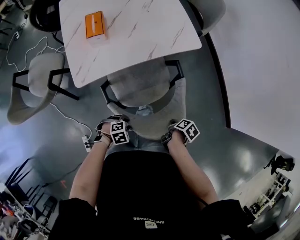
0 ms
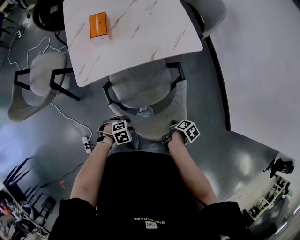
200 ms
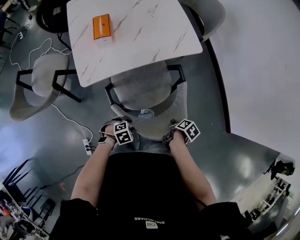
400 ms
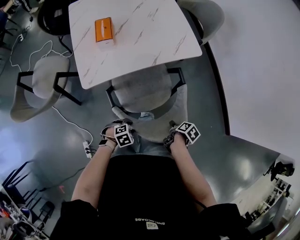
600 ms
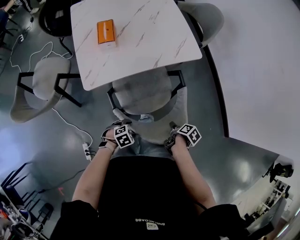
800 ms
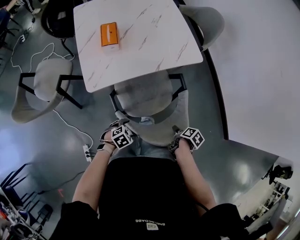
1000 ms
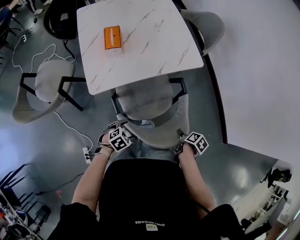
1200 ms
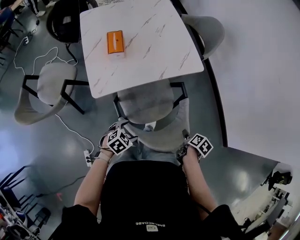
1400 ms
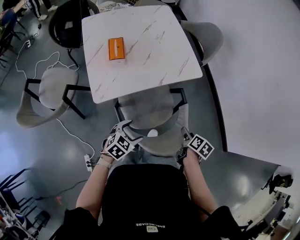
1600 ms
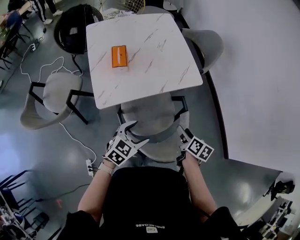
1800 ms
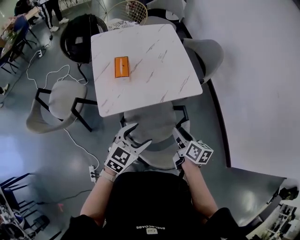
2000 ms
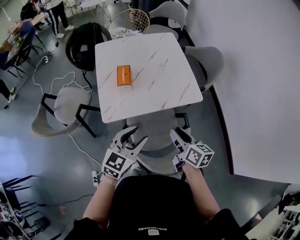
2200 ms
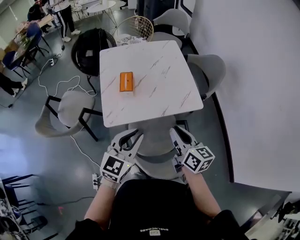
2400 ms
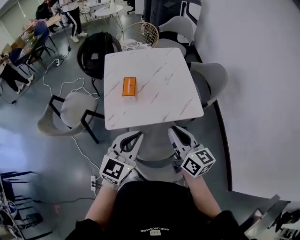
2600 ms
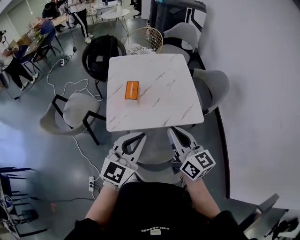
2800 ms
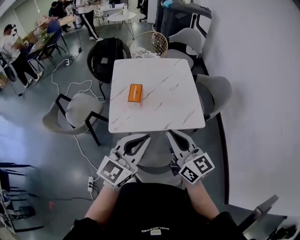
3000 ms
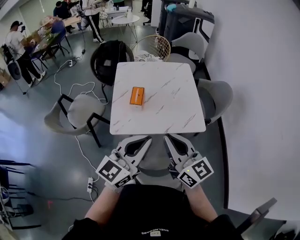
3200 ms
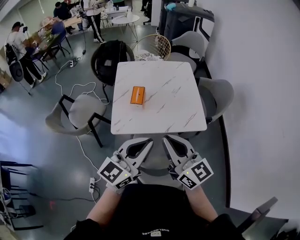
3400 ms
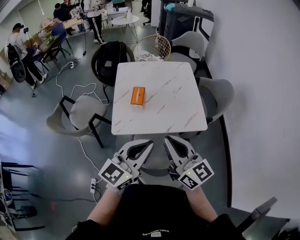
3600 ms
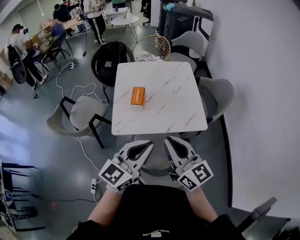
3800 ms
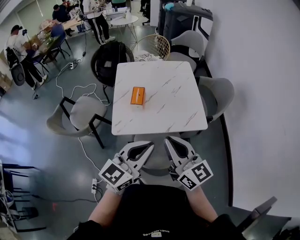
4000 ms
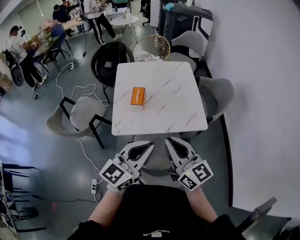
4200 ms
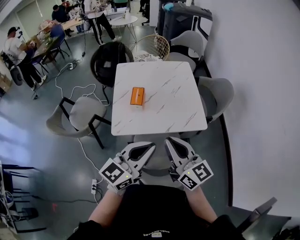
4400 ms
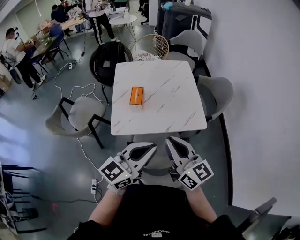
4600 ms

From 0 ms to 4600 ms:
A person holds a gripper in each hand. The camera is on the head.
From 0 ms to 1600 ms: The two grippers go roughly 15 cm upward. The left gripper swivels about 40 degrees, and opens, while the right gripper rotates approximately 30 degrees, and opens its fingers.
From 1600 ms to 3000 ms: The two grippers go approximately 35 cm upward. The left gripper tips its fingers upward by about 50 degrees, and closes, while the right gripper angles its fingers upward, by about 60 degrees, and closes up.
From 3000 ms to 4600 ms: The grippers make only small movements.

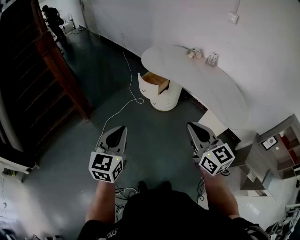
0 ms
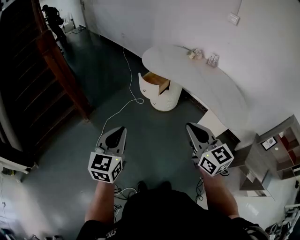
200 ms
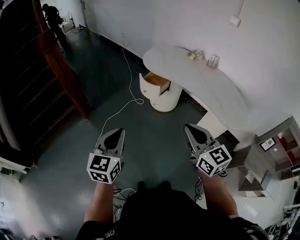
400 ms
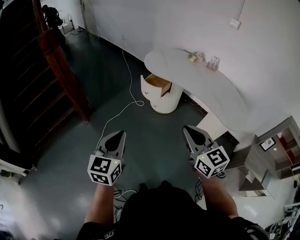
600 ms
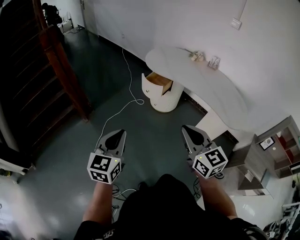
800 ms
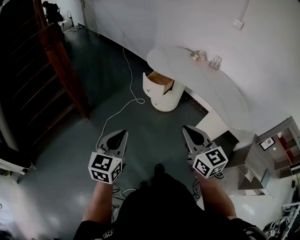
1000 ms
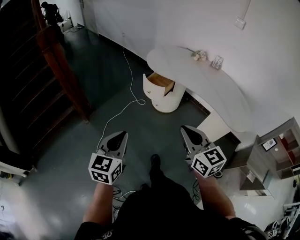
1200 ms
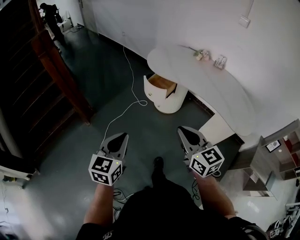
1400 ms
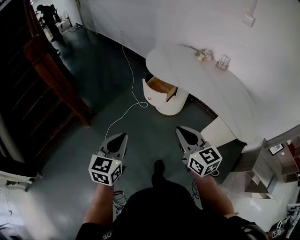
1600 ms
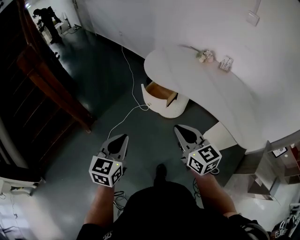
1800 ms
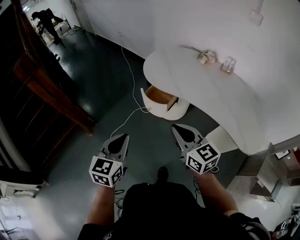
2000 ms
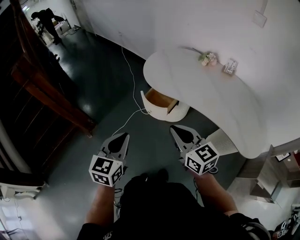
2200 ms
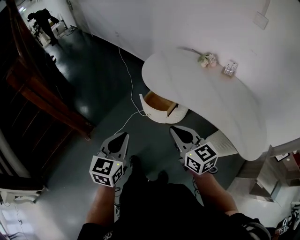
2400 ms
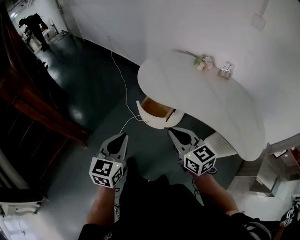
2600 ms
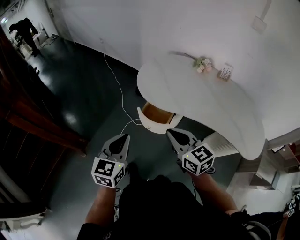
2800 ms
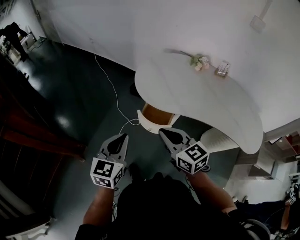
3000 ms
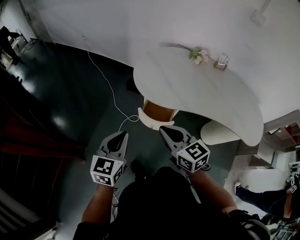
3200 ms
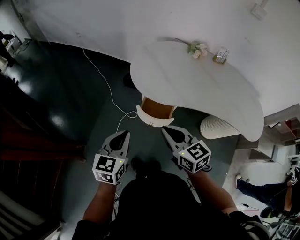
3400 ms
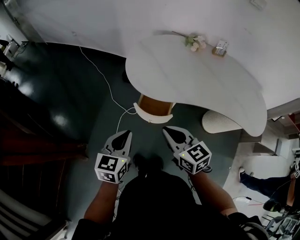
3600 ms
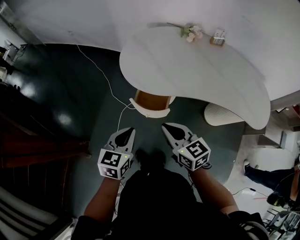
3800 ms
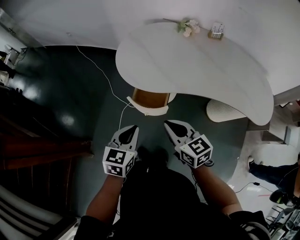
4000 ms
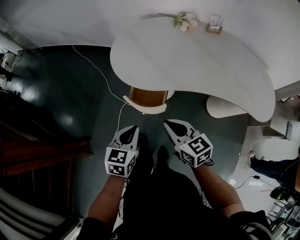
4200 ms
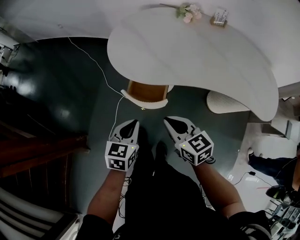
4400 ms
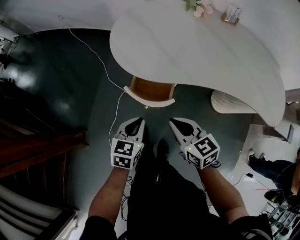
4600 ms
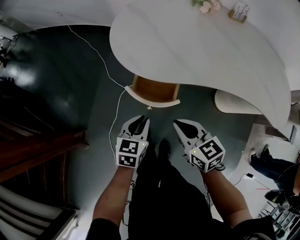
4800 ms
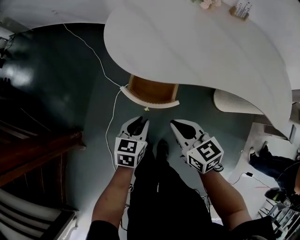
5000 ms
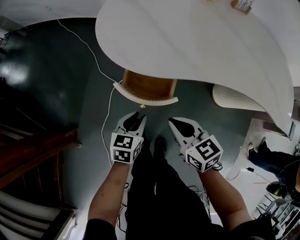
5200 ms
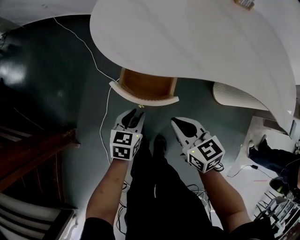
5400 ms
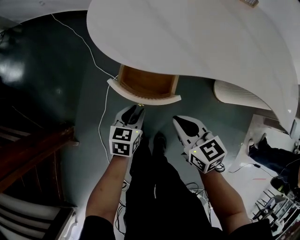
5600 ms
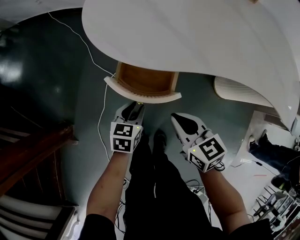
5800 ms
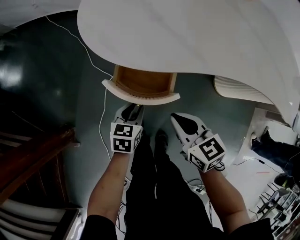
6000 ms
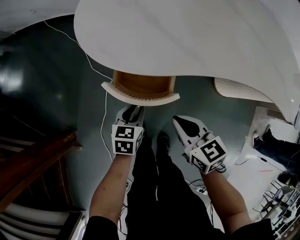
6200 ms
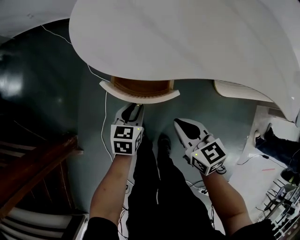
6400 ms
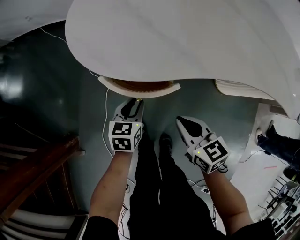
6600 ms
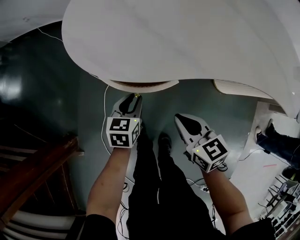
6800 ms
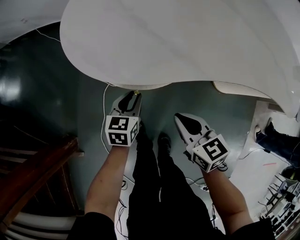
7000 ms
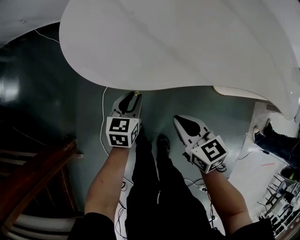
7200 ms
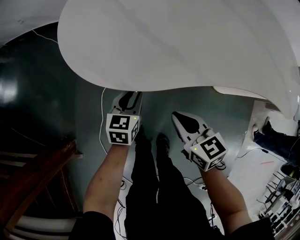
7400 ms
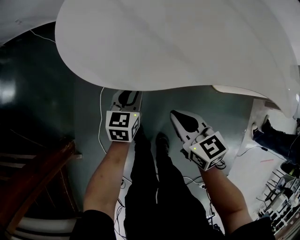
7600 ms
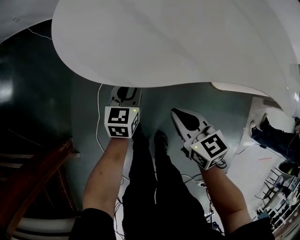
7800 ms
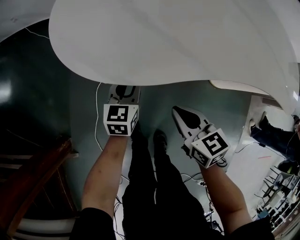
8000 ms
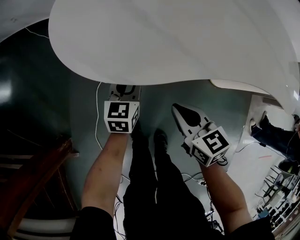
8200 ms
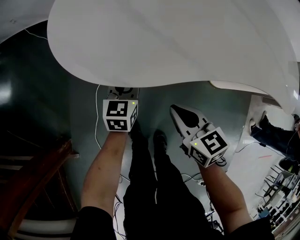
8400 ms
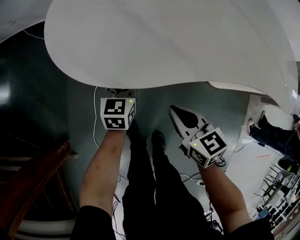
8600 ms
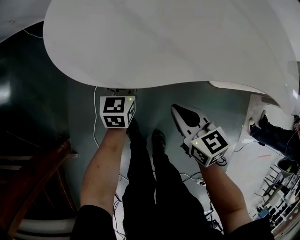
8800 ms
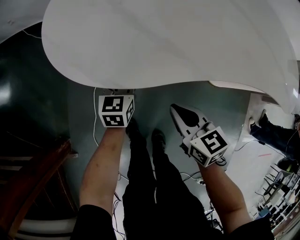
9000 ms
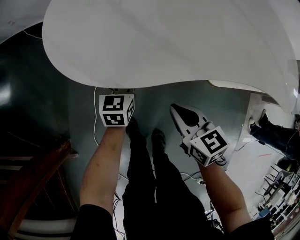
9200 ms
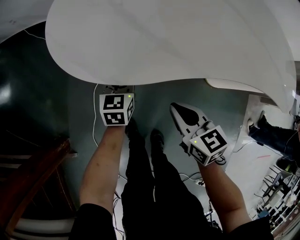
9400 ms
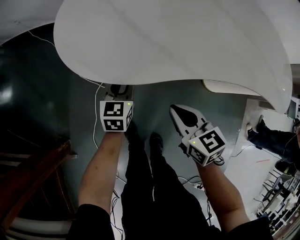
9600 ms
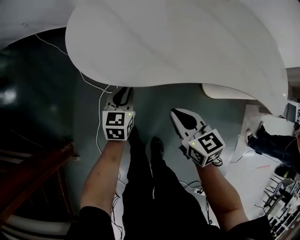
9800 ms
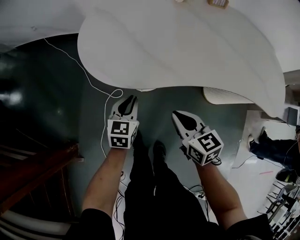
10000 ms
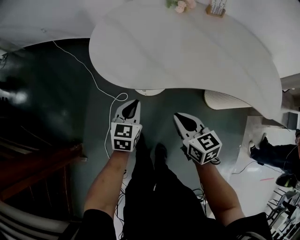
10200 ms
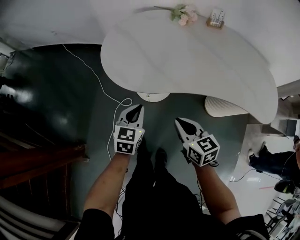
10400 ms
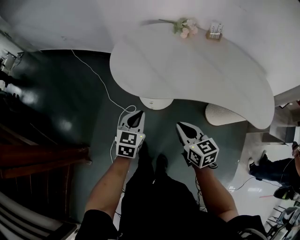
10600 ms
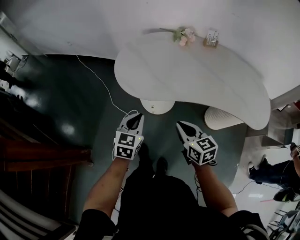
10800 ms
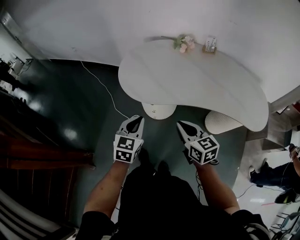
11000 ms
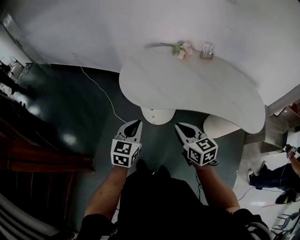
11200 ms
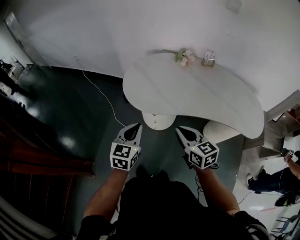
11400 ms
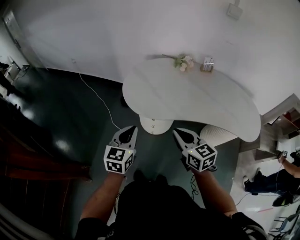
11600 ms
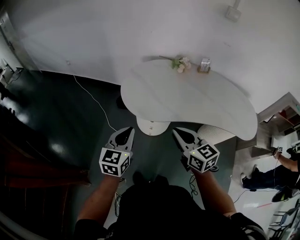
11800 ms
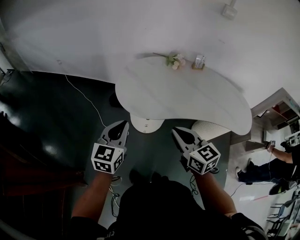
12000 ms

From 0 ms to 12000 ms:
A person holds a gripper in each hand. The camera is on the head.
From 0 ms to 1600 ms: The left gripper is displaced forward and downward by approximately 15 cm. The right gripper travels forward, to the left and downward by about 20 cm.
From 1600 ms to 3000 ms: Both grippers move forward, some 35 cm.
From 3000 ms to 4400 ms: Both grippers move downward and to the right, some 20 cm. The left gripper changes its angle by roughly 20 degrees.
From 4400 ms to 6000 ms: Both grippers travel together downward, roughly 25 cm. The left gripper opens.
From 6000 ms to 7600 ms: The right gripper shifts by about 5 cm. Meanwhile the left gripper goes about 10 cm forward.
From 7600 ms to 9000 ms: The left gripper travels forward by approximately 5 cm.
From 9000 ms to 10400 ms: The right gripper travels upward by some 15 cm. Meanwhile the left gripper is displaced upward and backward by approximately 25 cm, and closes.
From 10400 ms to 12000 ms: The left gripper goes approximately 25 cm upward and to the left. Meanwhile the right gripper moves upward, roughly 25 cm.

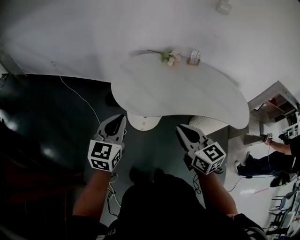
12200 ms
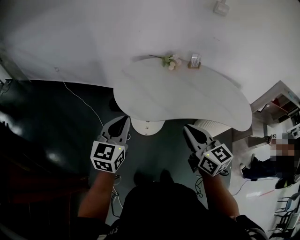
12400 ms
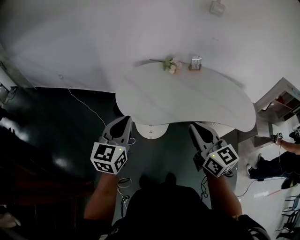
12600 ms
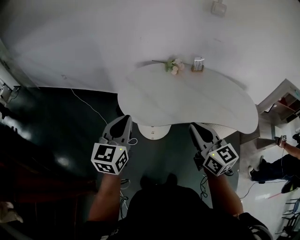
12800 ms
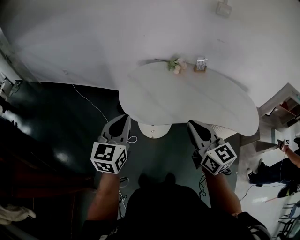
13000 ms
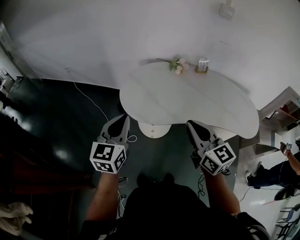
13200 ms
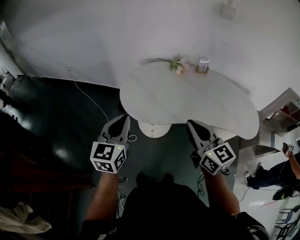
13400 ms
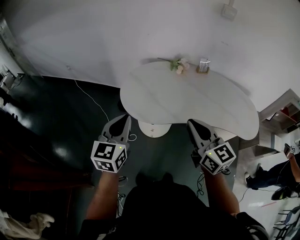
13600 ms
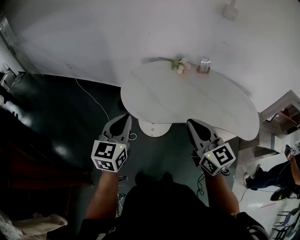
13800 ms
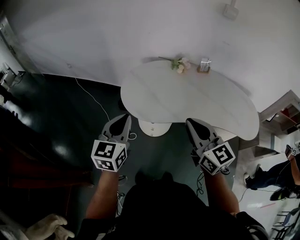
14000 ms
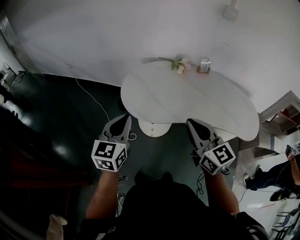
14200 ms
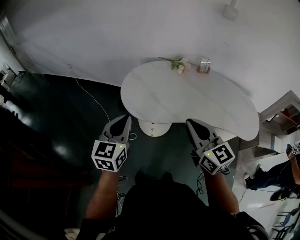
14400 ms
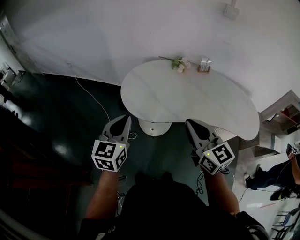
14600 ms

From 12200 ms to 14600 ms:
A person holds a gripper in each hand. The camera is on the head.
From 12200 ms to 13400 ms: The left gripper ends up roughly 5 cm from where it was; the right gripper shifts approximately 10 cm upward and to the right.
From 13400 ms to 14600 ms: The grippers make only small movements.

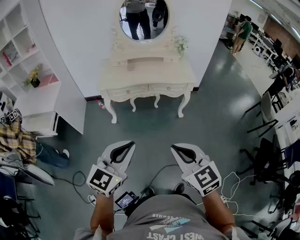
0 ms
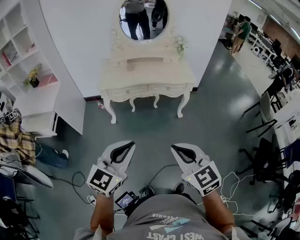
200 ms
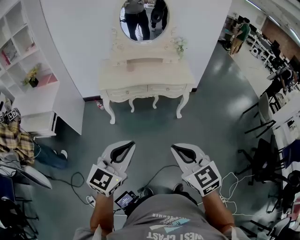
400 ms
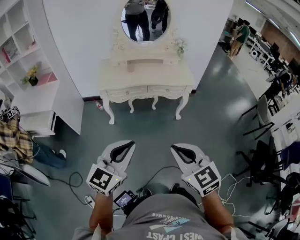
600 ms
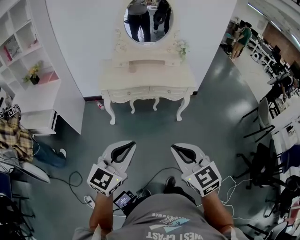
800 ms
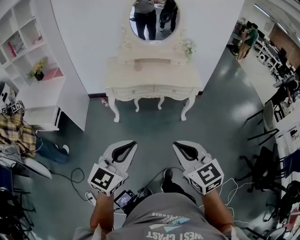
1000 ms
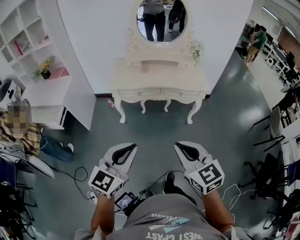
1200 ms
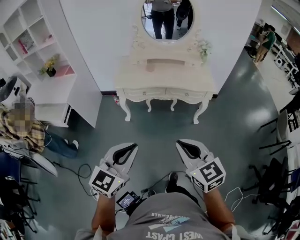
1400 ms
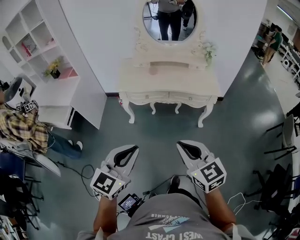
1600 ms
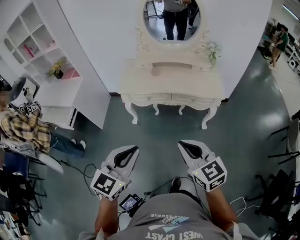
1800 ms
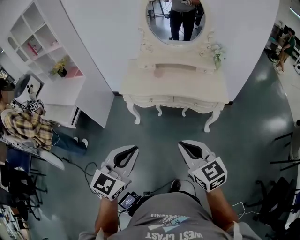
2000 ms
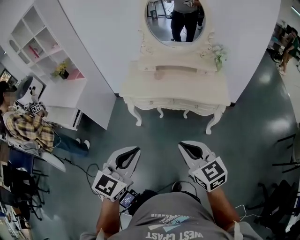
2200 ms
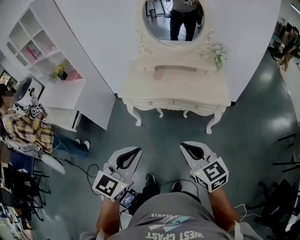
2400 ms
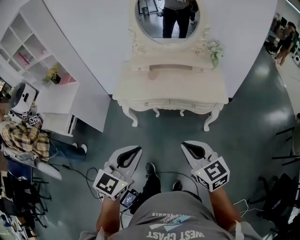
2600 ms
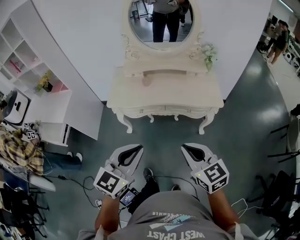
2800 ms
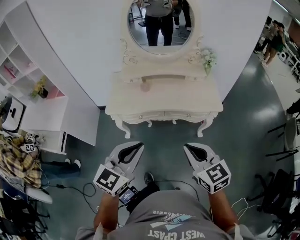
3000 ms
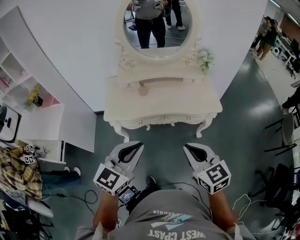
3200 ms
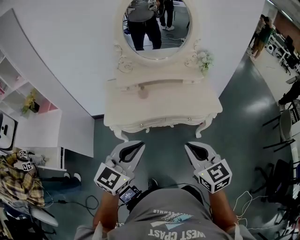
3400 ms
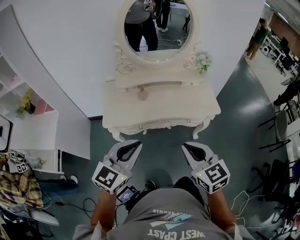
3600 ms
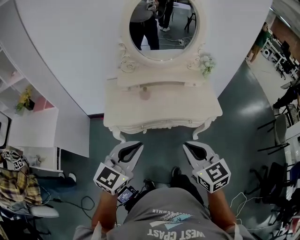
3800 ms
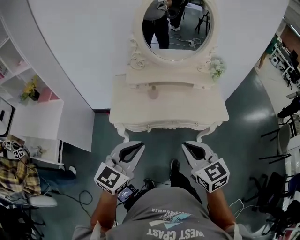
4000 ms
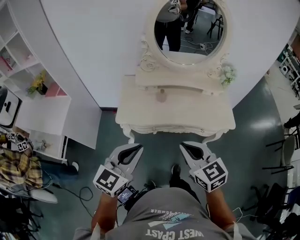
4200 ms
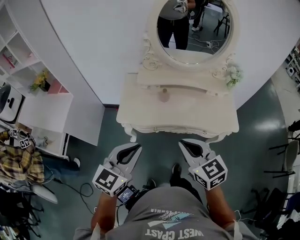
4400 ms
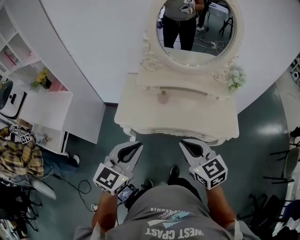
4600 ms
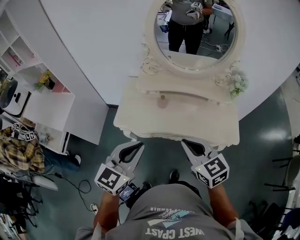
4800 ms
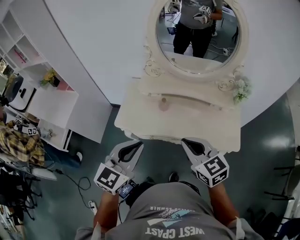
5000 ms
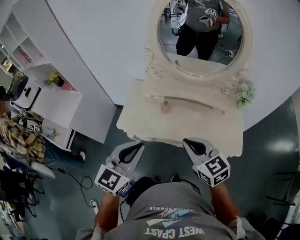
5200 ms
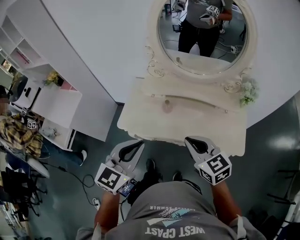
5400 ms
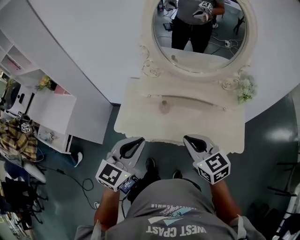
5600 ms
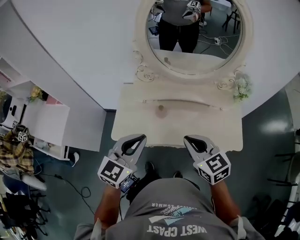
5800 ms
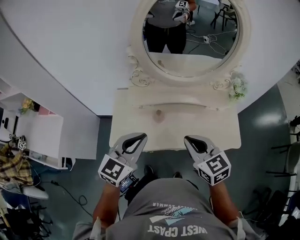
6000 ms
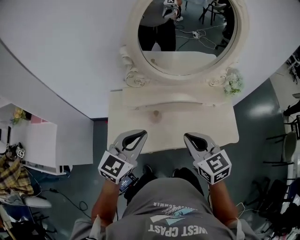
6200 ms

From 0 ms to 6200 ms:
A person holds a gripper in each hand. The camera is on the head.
From 0 ms to 1600 ms: The right gripper heads forward, covering approximately 15 cm, while the left gripper goes roughly 10 cm forward.
From 1600 ms to 3200 ms: The two grippers go roughly 25 cm forward.
From 3200 ms to 4600 ms: Both grippers move forward and to the left, about 20 cm.
From 4600 ms to 6200 ms: Both grippers move forward, approximately 20 cm.
